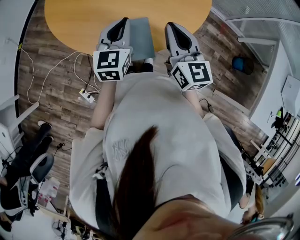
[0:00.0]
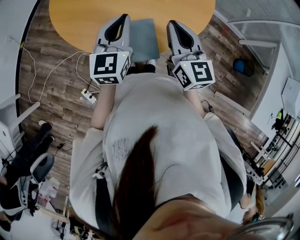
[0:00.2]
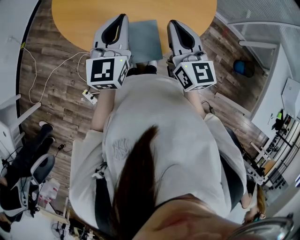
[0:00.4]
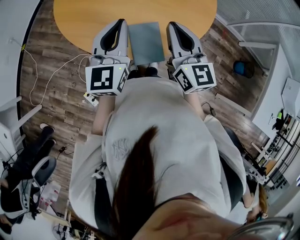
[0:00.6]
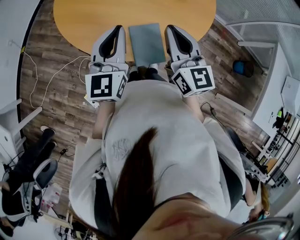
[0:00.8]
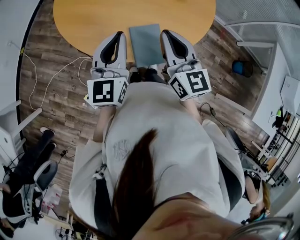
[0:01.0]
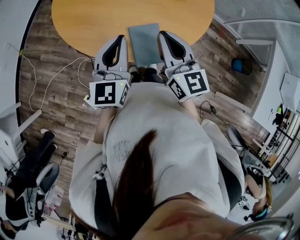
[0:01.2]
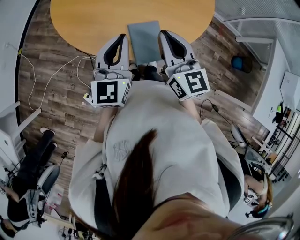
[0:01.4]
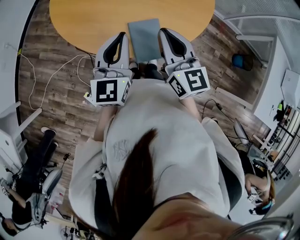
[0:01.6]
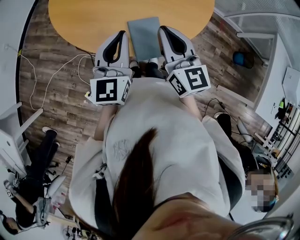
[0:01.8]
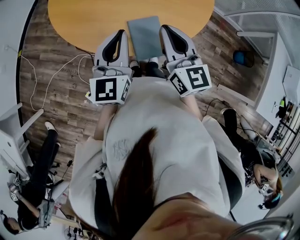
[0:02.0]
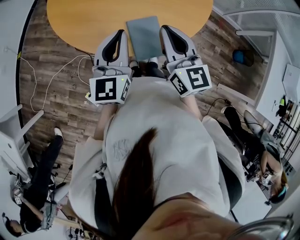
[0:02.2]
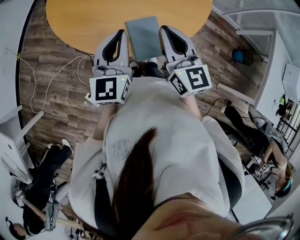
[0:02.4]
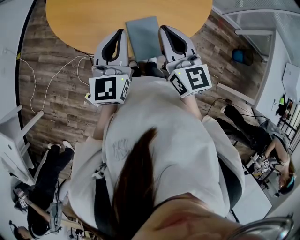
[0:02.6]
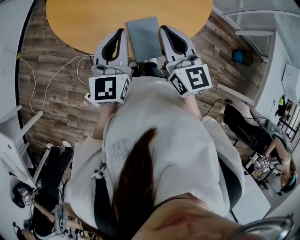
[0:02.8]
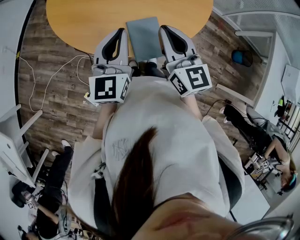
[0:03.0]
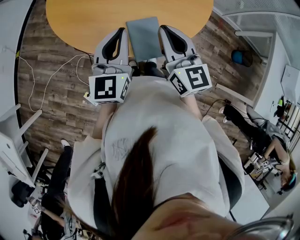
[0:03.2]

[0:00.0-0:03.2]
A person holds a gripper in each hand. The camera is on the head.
0:00.0 to 0:01.6: The right gripper shifts approximately 10 cm to the left; the left gripper is displaced to the left, upward and backward by some 10 cm.
0:01.6 to 0:03.2: Both grippers stay about where they are.

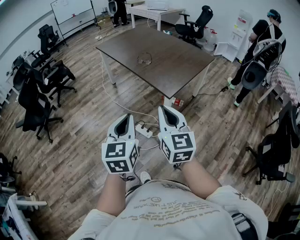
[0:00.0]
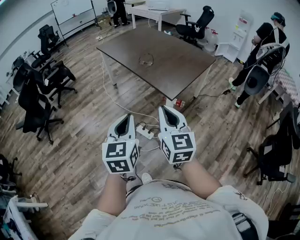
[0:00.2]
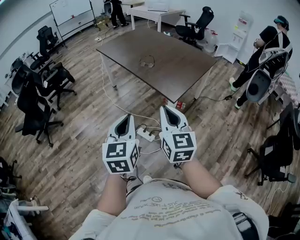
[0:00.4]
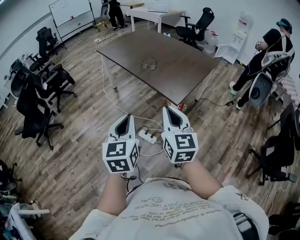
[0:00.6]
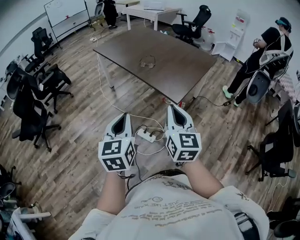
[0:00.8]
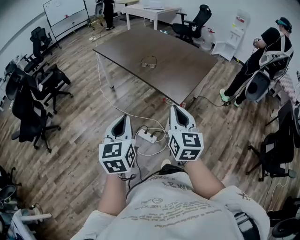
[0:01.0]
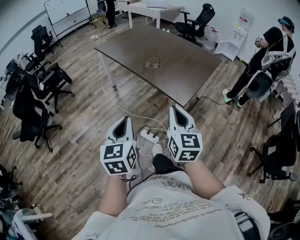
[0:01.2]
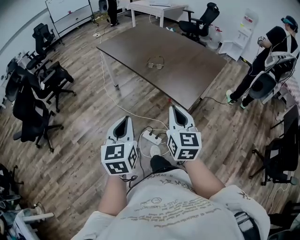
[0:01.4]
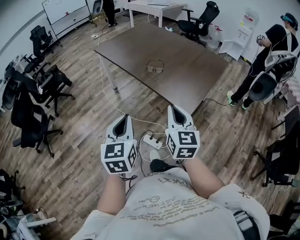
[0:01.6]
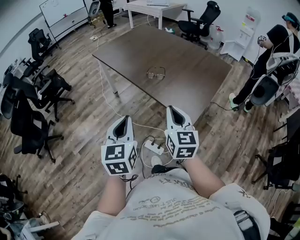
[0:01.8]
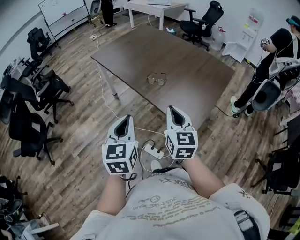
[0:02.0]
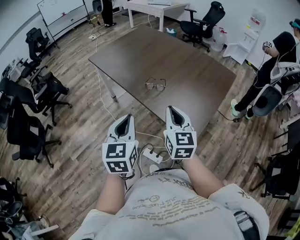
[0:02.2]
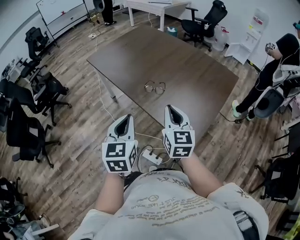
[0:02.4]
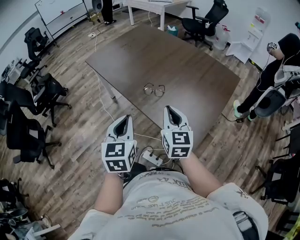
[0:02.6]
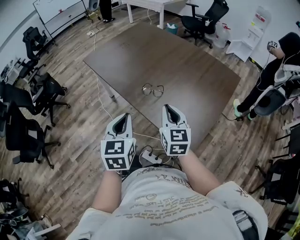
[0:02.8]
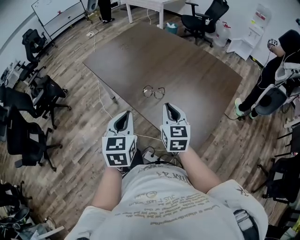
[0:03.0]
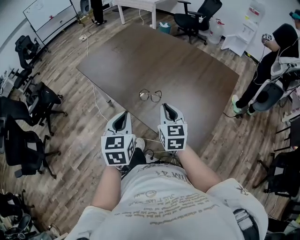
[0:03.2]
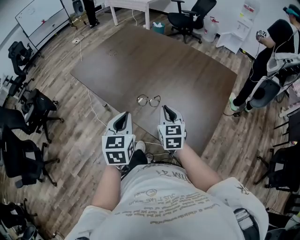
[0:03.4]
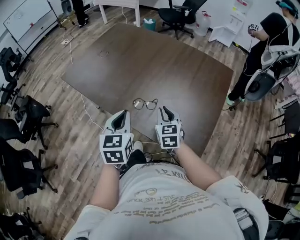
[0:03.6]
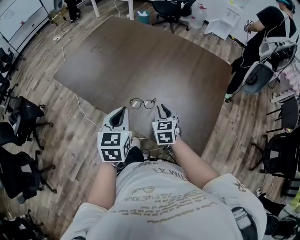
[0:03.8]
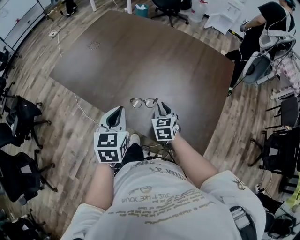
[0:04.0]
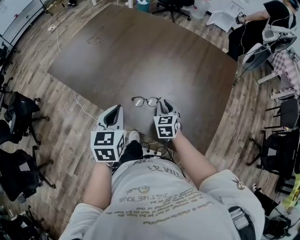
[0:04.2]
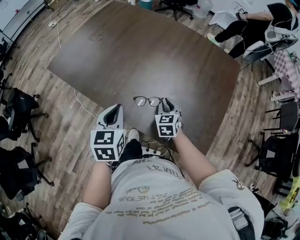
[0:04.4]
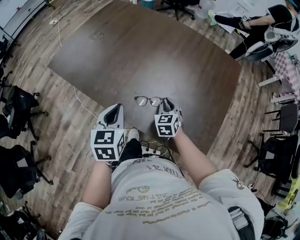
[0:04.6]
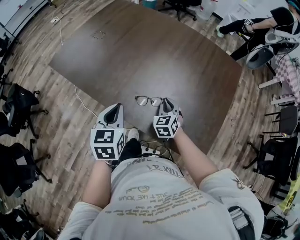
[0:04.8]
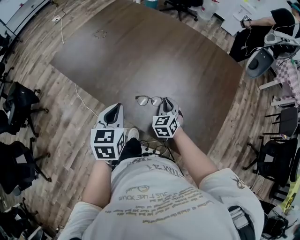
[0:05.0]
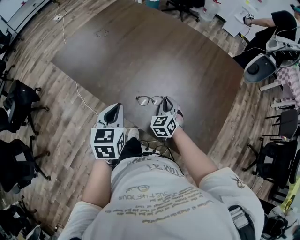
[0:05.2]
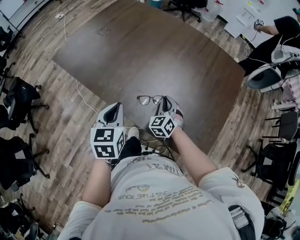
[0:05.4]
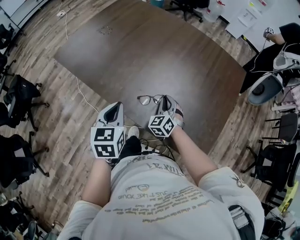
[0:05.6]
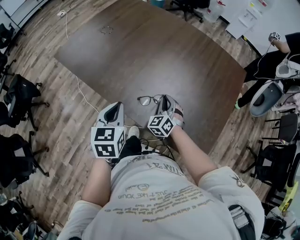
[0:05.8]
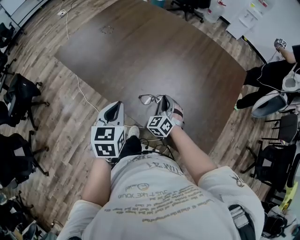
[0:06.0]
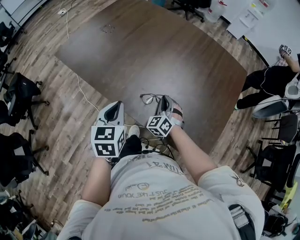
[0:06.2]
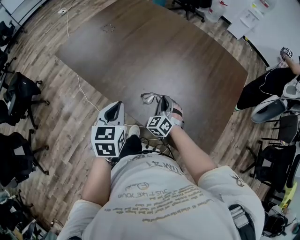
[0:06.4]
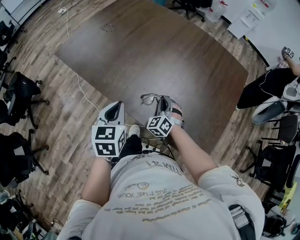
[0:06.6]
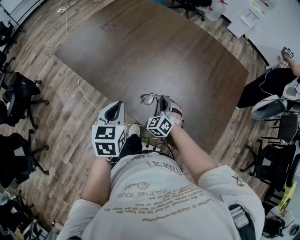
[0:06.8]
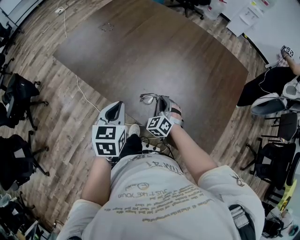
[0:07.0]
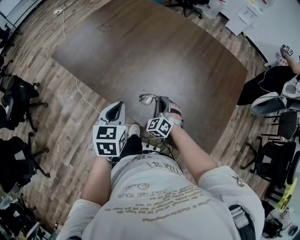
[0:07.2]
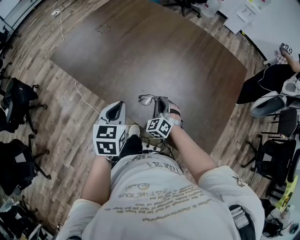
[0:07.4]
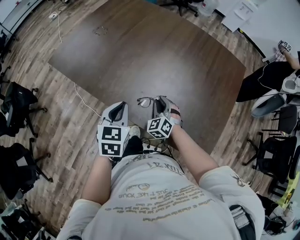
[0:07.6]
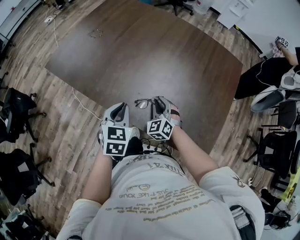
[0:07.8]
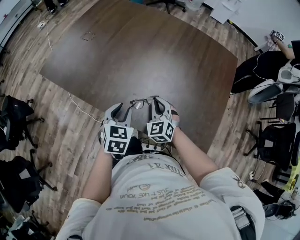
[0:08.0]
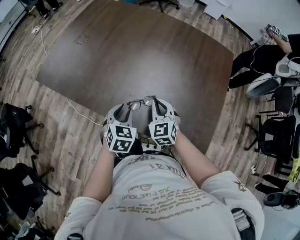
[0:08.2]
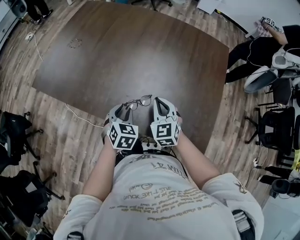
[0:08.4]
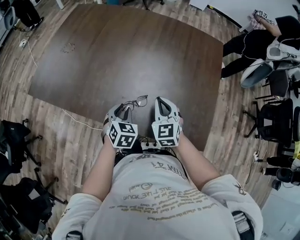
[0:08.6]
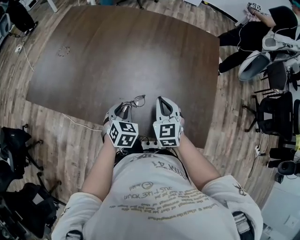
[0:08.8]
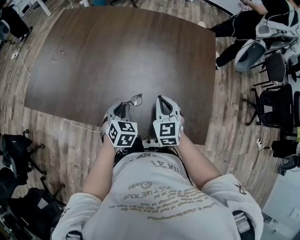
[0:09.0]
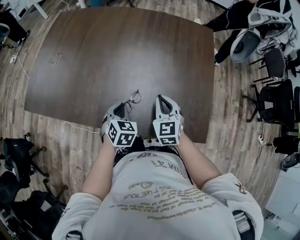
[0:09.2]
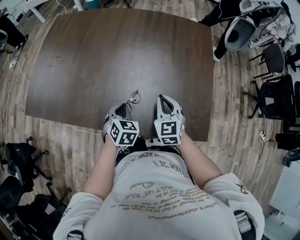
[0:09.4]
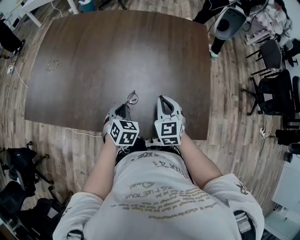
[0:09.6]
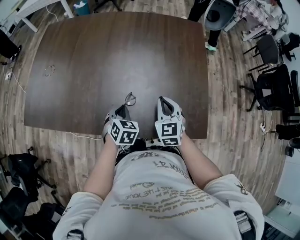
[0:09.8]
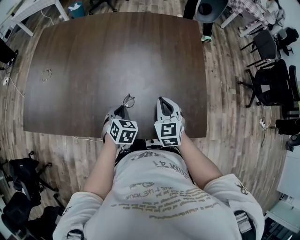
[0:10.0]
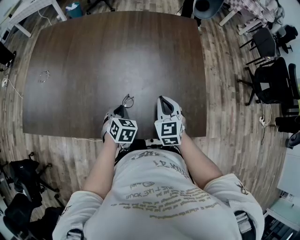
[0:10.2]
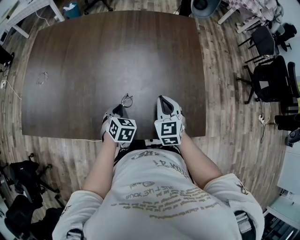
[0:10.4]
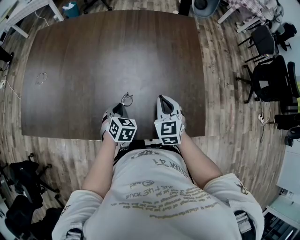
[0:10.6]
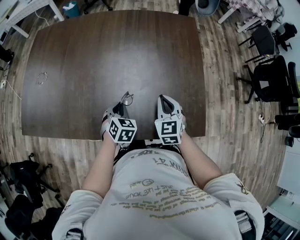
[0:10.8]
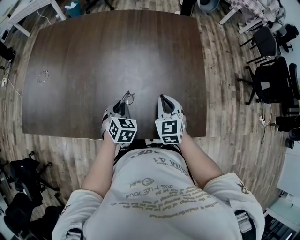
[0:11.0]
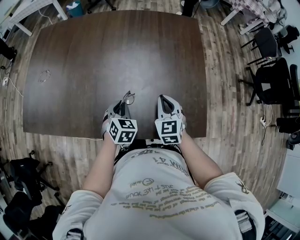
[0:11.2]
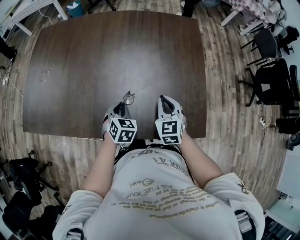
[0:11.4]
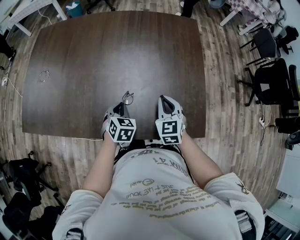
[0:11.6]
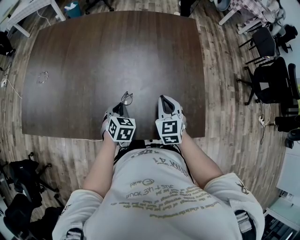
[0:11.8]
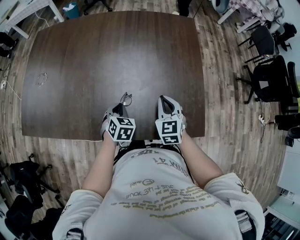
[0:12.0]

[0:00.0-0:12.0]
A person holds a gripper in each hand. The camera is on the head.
0:00.0 to 0:01.6: The left gripper heads forward and to the left, covering about 25 cm; the right gripper is displaced forward by about 20 cm.
0:01.6 to 0:03.0: The grippers both shift forward by approximately 30 cm.
0:03.0 to 0:04.4: The left gripper heads forward and downward, covering about 20 cm. The right gripper travels downward and forward by about 25 cm, and rotates roughly 30 degrees.
0:04.4 to 0:06.0: The right gripper turns by approximately 30 degrees.
0:06.0 to 0:07.6: There are only small adjustments of the grippers.
0:07.6 to 0:09.0: The left gripper goes some 15 cm downward, to the right and forward, and swivels approximately 30 degrees. Meanwhile the right gripper moves to the right and upward, about 15 cm, rotates about 40 degrees, and closes its fingers.
0:09.0 to 0:10.4: The left gripper moves some 5 cm. The right gripper shifts about 5 cm to the right.
0:10.4 to 0:12.0: The grippers move only a little.

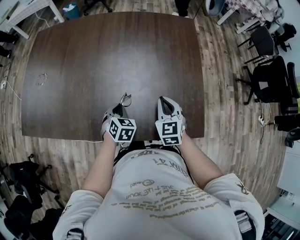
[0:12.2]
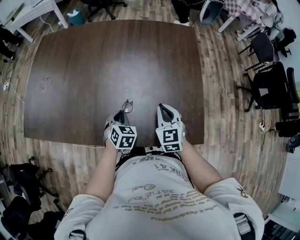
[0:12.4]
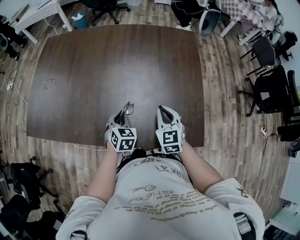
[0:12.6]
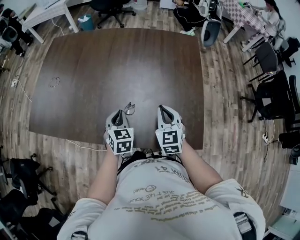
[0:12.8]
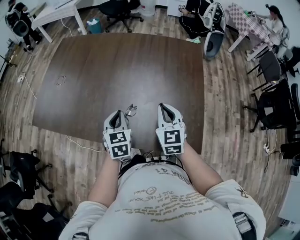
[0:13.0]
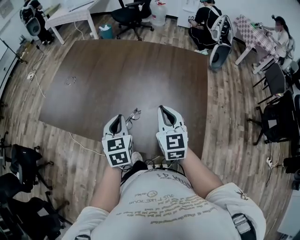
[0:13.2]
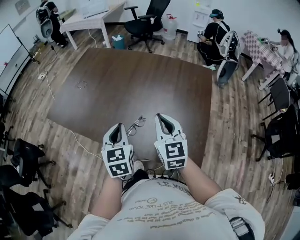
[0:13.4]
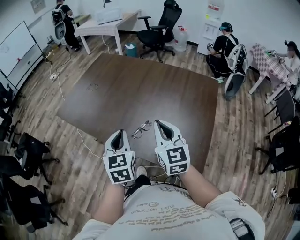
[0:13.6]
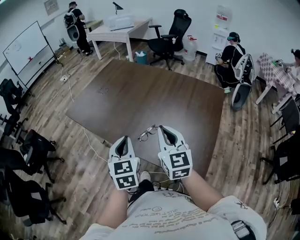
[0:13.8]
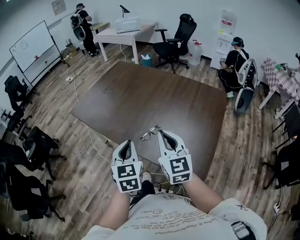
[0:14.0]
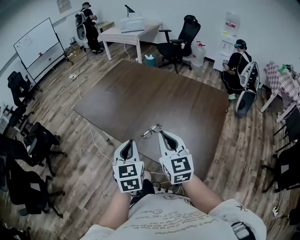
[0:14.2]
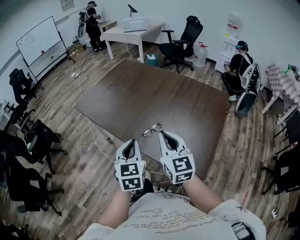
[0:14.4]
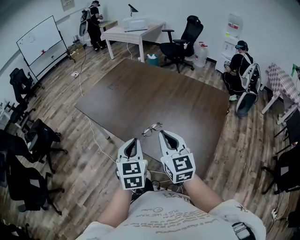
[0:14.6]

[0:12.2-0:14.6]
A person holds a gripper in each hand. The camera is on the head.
0:12.2 to 0:13.4: The two grippers go roughly 20 cm upward. The left gripper swivels some 40 degrees. The right gripper swivels roughly 30 degrees.
0:13.4 to 0:14.6: The right gripper moves backward and to the left, some 15 cm. The left gripper is displaced backward by roughly 15 cm.

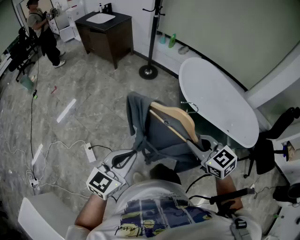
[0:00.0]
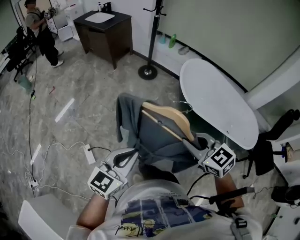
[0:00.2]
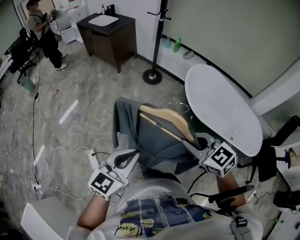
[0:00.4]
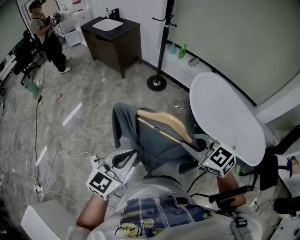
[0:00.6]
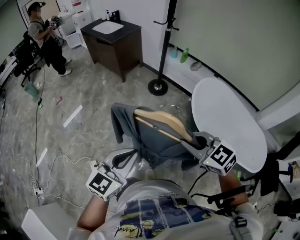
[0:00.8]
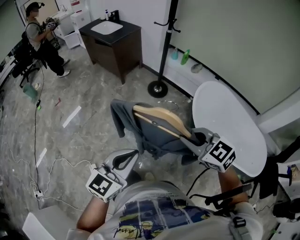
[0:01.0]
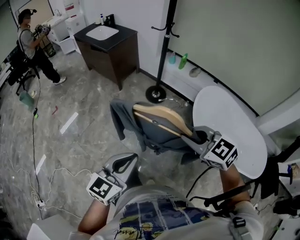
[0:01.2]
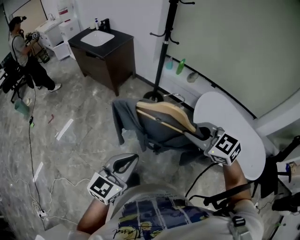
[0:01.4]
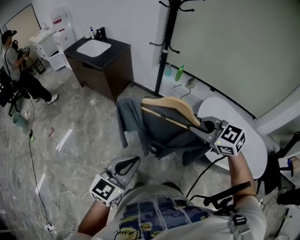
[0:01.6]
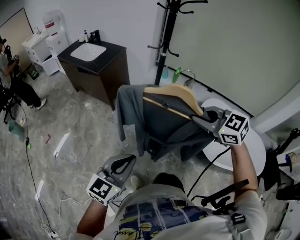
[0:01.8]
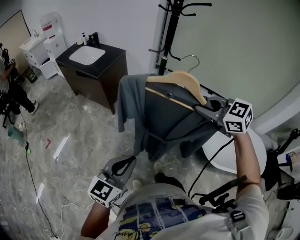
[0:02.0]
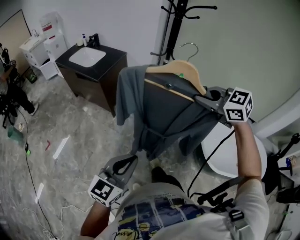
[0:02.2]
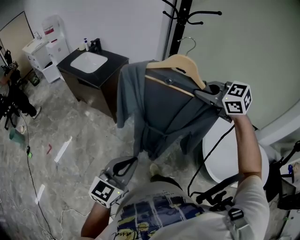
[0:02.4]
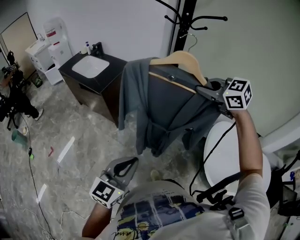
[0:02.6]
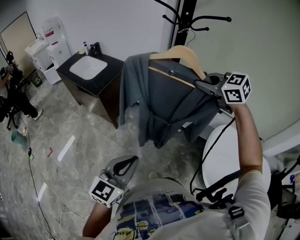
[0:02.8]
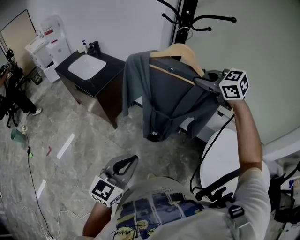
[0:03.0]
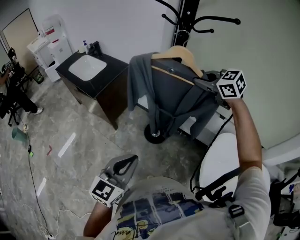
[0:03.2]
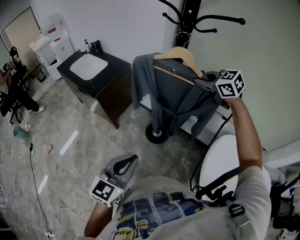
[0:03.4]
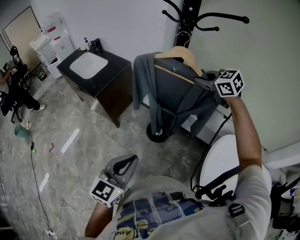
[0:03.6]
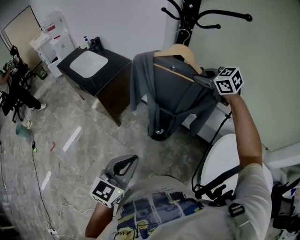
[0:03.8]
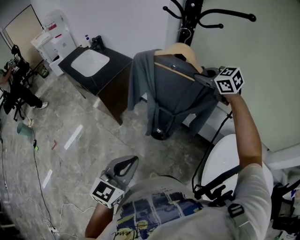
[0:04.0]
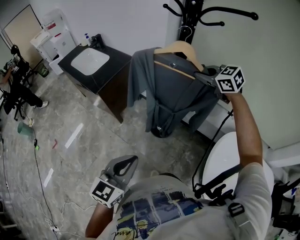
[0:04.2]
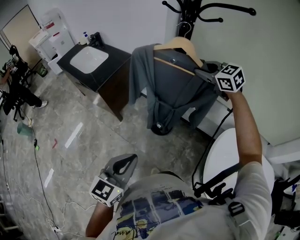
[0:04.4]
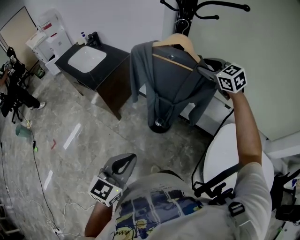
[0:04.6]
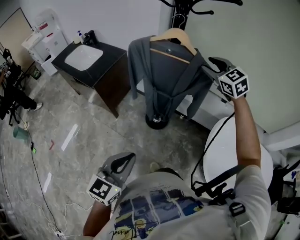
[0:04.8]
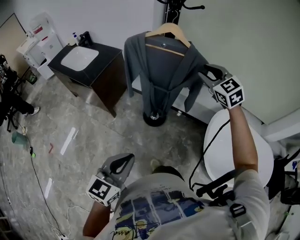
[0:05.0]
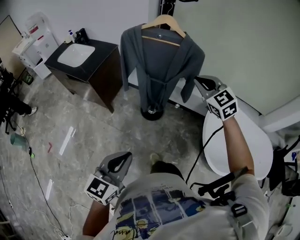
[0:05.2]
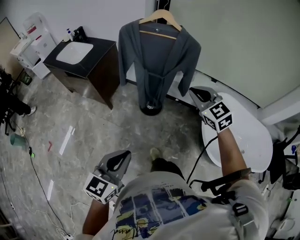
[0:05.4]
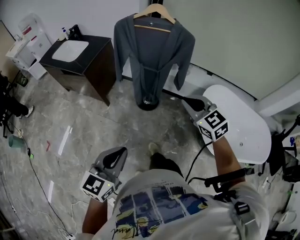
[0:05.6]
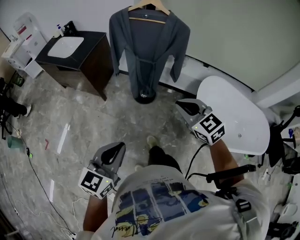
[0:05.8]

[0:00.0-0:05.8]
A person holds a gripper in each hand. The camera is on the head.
0:00.0 to 0:01.4: The two grippers go about 40 cm forward.
0:01.4 to 0:02.8: The grippers both shift forward by approximately 40 cm.
0:02.8 to 0:04.4: The left gripper heads forward, covering about 10 cm. The right gripper shifts roughly 20 cm forward and downward, and opens up.
0:04.4 to 0:05.8: The left gripper goes some 20 cm backward. The right gripper moves backward, roughly 40 cm, and closes.
